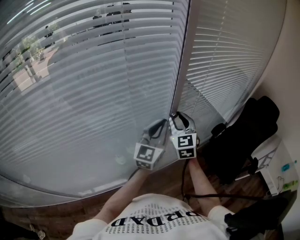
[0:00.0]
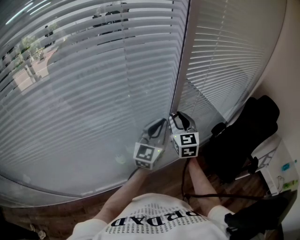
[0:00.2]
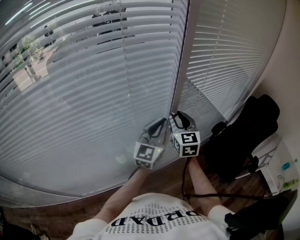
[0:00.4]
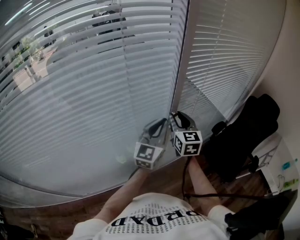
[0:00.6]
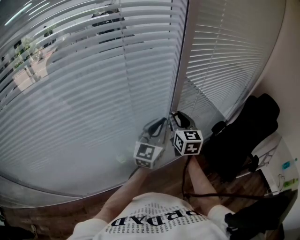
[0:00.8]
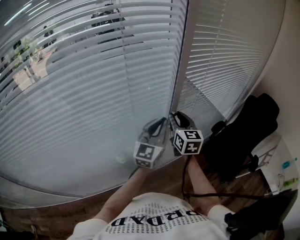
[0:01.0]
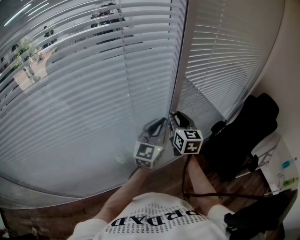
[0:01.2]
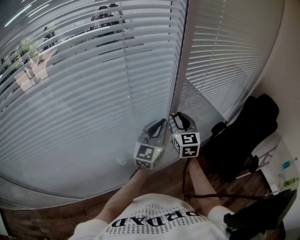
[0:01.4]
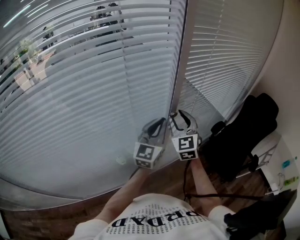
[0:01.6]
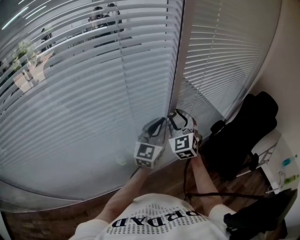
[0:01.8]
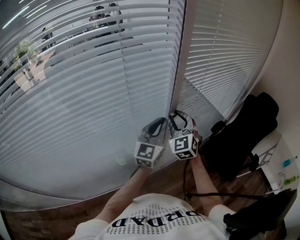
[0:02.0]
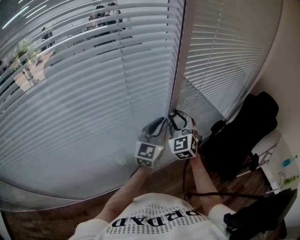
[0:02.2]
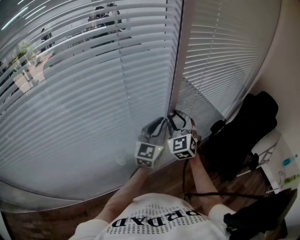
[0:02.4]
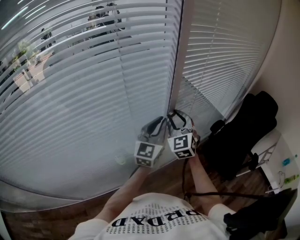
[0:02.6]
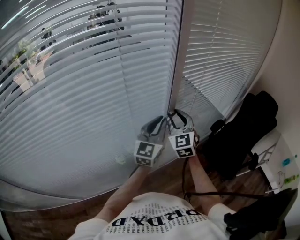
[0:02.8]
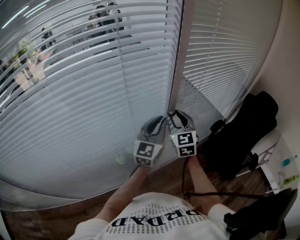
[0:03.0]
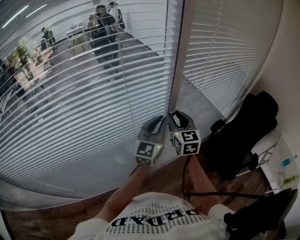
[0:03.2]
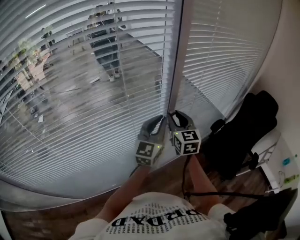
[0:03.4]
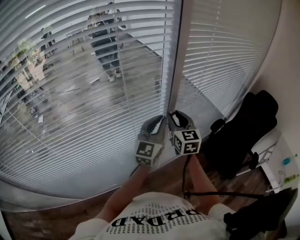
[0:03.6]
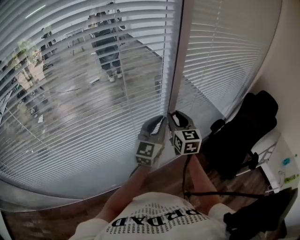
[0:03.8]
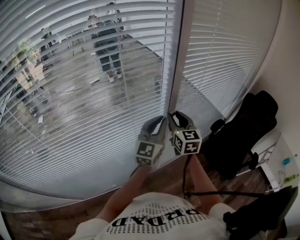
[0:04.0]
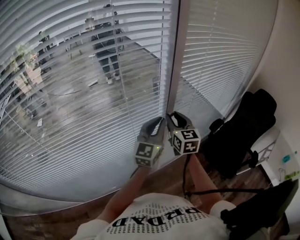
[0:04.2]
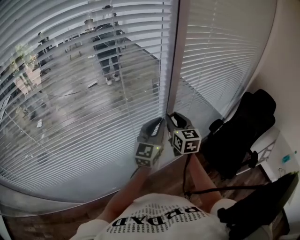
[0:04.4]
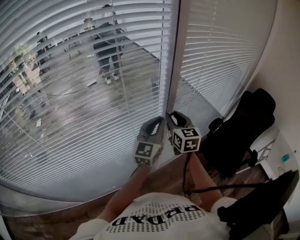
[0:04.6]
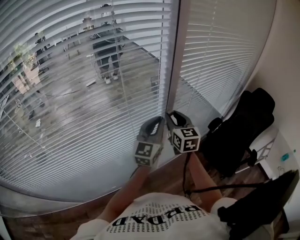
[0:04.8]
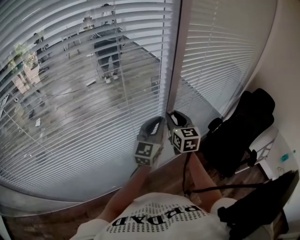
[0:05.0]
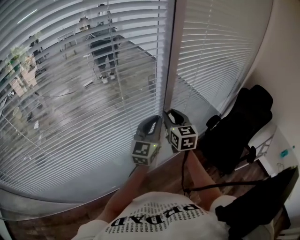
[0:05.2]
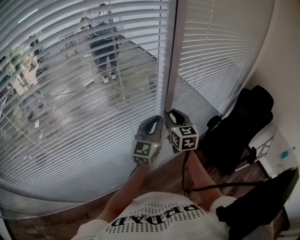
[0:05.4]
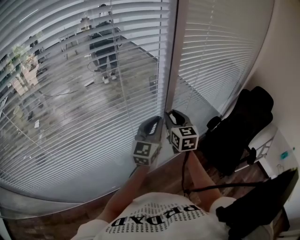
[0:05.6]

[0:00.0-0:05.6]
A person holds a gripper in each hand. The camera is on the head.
0:02.8 to 0:04.2: The right gripper rotates approximately 30 degrees.
0:04.2 to 0:05.6: The two grippers keep their place.

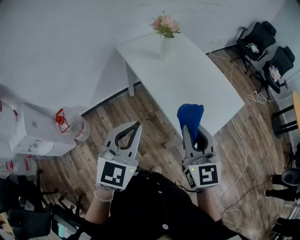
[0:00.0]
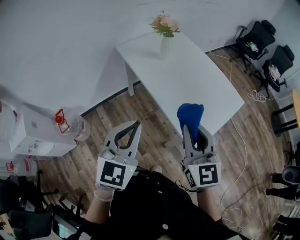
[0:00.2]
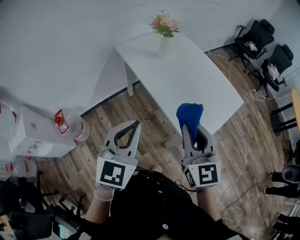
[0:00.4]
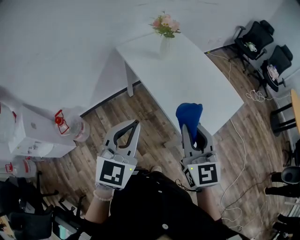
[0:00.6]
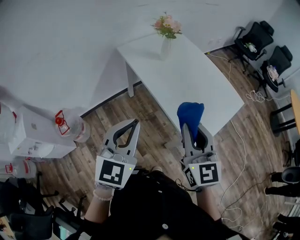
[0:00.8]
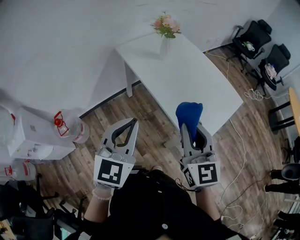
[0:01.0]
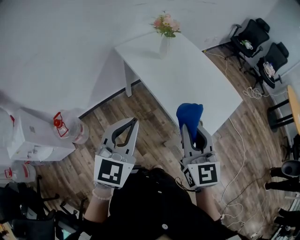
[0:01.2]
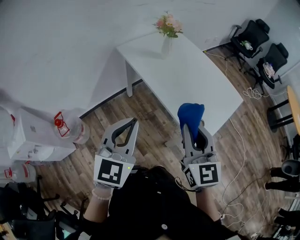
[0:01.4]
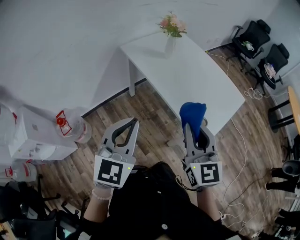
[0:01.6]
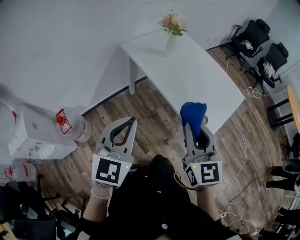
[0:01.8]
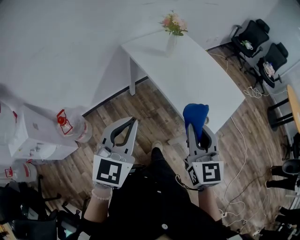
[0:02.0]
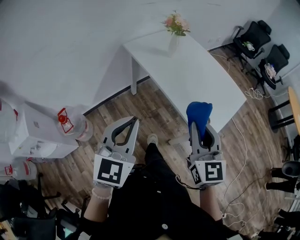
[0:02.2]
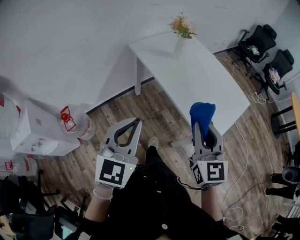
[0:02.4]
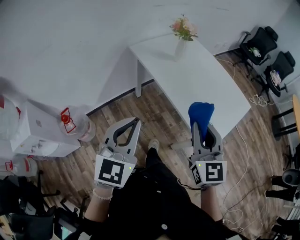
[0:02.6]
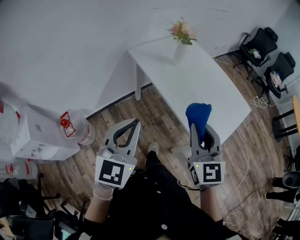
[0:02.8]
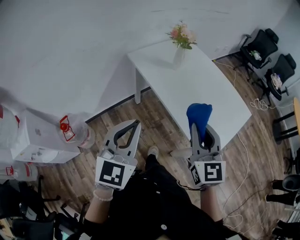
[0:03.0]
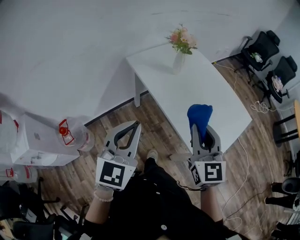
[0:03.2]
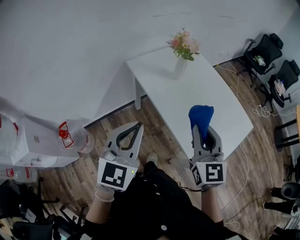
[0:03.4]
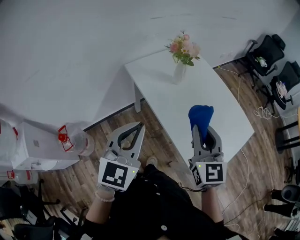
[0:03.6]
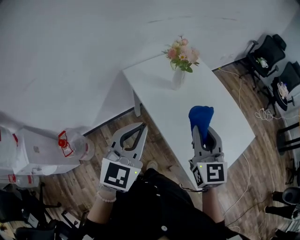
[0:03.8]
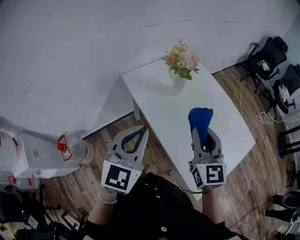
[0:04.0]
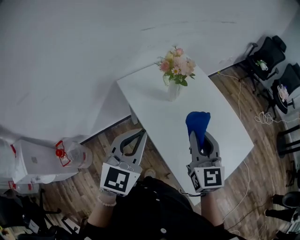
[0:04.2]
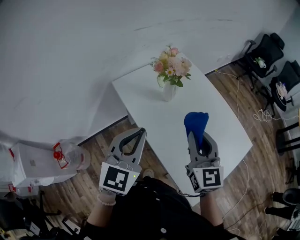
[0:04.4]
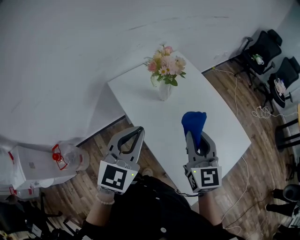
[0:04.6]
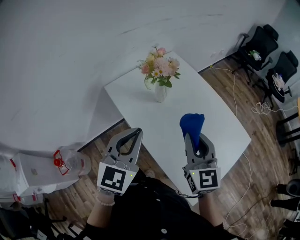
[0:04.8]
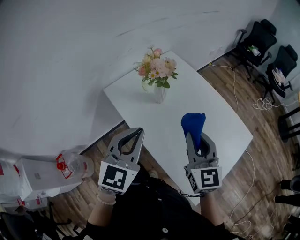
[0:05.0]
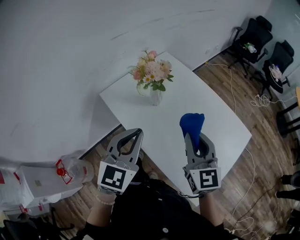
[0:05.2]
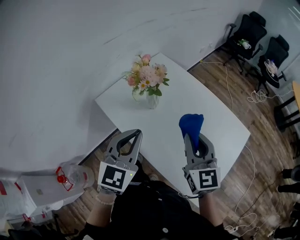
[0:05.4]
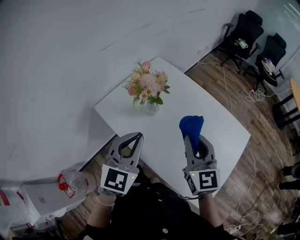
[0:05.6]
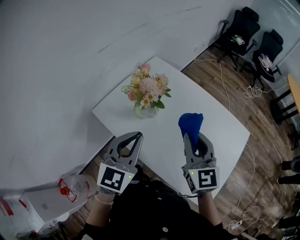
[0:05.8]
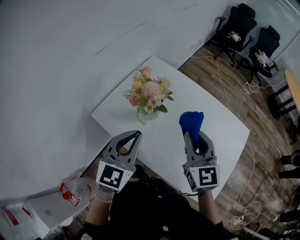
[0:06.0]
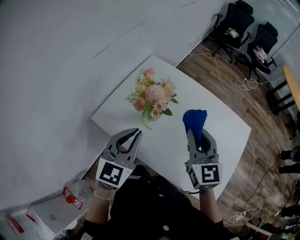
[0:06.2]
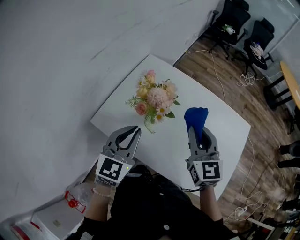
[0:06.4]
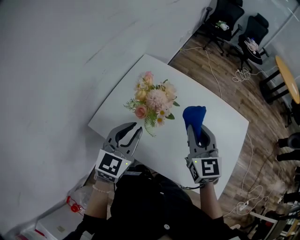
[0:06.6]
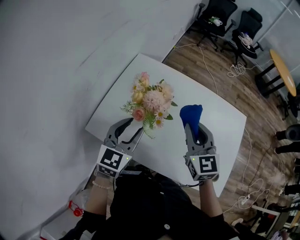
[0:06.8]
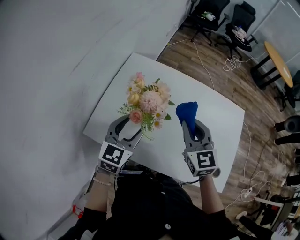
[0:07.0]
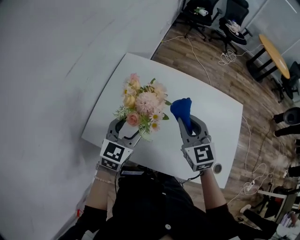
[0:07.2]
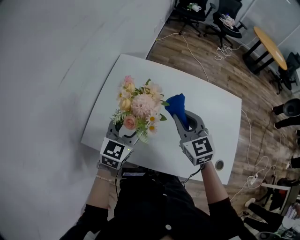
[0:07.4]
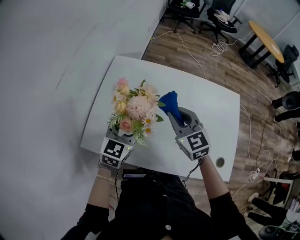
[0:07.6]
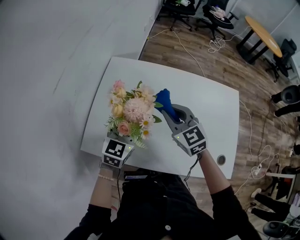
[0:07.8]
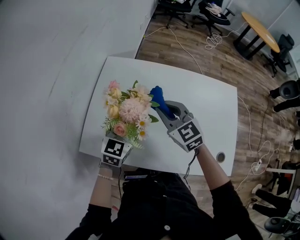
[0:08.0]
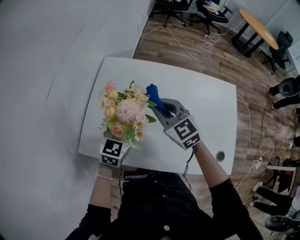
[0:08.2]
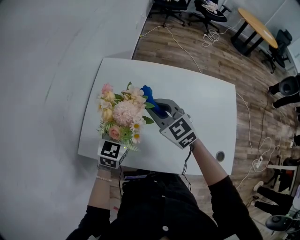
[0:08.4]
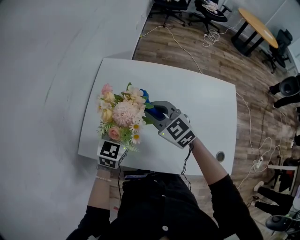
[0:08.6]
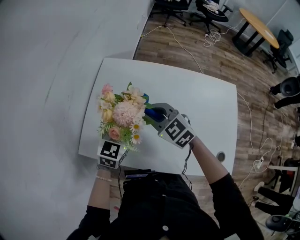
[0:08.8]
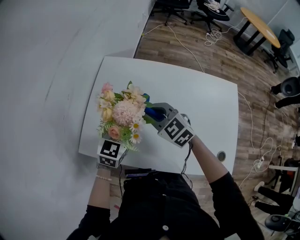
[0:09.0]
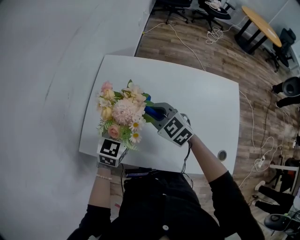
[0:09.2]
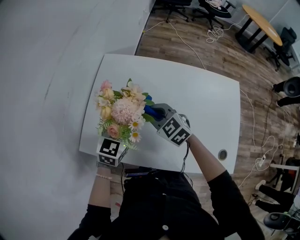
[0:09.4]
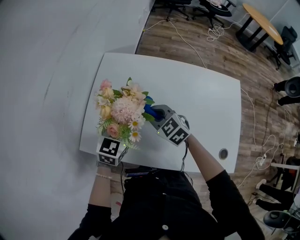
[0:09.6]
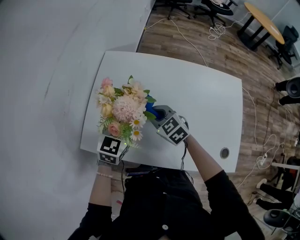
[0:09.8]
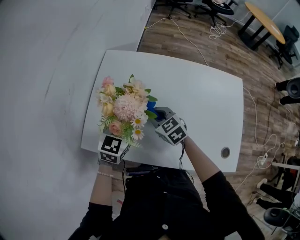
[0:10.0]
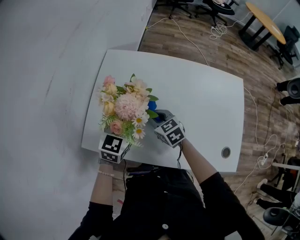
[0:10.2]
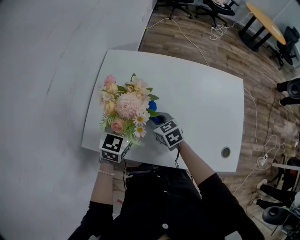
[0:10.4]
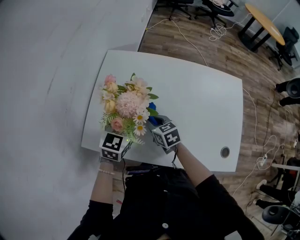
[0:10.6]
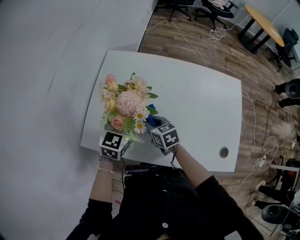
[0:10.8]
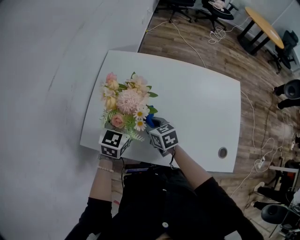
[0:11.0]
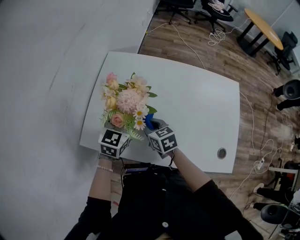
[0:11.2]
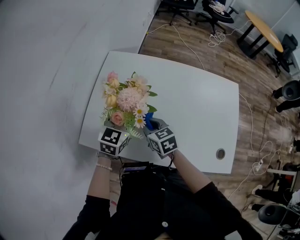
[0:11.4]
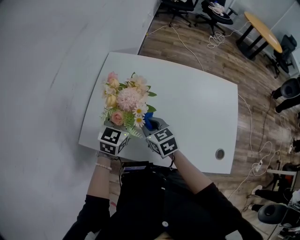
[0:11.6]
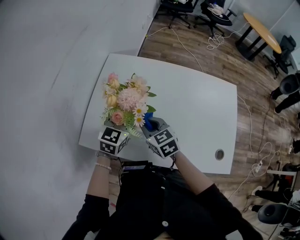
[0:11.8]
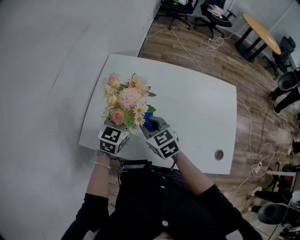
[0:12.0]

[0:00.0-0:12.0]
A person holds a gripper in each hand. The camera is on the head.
0:00.0 to 0:01.6: Both grippers move to the left, about 5 cm.
0:01.6 to 0:03.0: The two grippers go some 5 cm forward.
0:03.0 to 0:04.4: The two grippers go about 25 cm forward.
0:04.4 to 0:06.0: Both grippers travel together forward, some 15 cm. The left gripper changes its angle by roughly 20 degrees.
0:06.0 to 0:07.6: The grippers both shift forward and downward by approximately 15 cm. The left gripper swivels about 30 degrees, and opens.
0:07.6 to 0:09.0: The right gripper is displaced to the left and downward by some 10 cm, and changes its angle by some 20 degrees.
0:09.0 to 0:10.4: The right gripper moves downward, approximately 10 cm, and changes its angle by approximately 30 degrees.
0:10.4 to 0:12.0: The right gripper moves upward, roughly 10 cm.

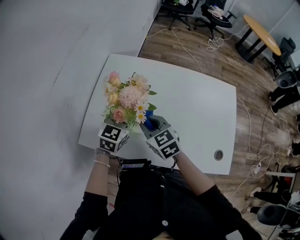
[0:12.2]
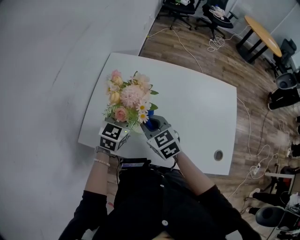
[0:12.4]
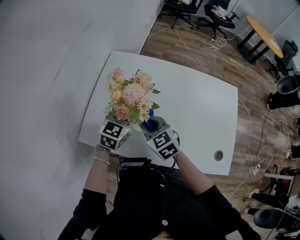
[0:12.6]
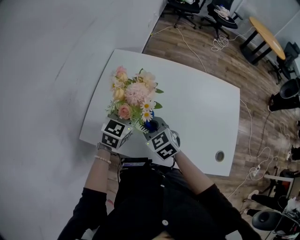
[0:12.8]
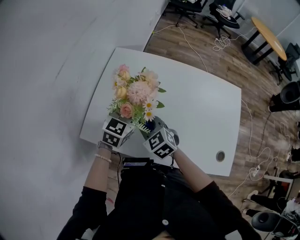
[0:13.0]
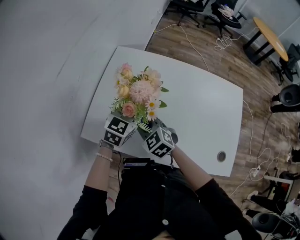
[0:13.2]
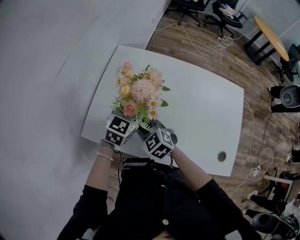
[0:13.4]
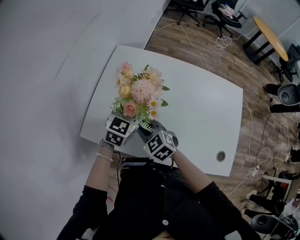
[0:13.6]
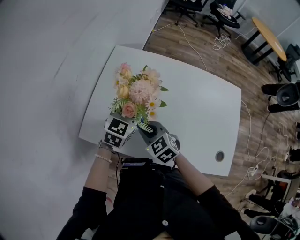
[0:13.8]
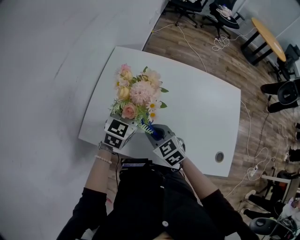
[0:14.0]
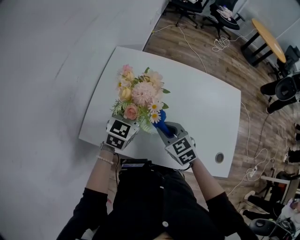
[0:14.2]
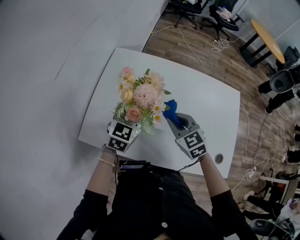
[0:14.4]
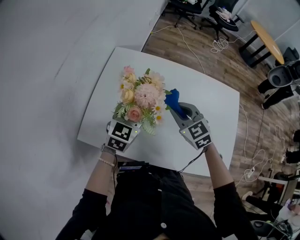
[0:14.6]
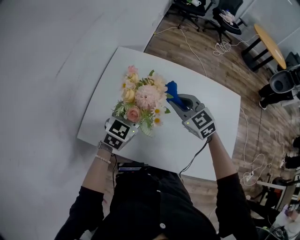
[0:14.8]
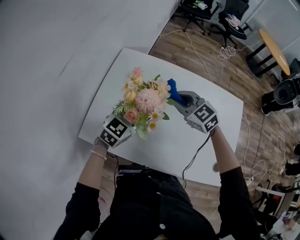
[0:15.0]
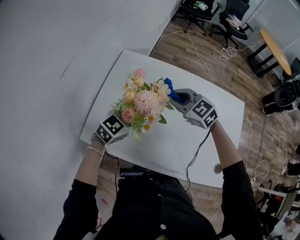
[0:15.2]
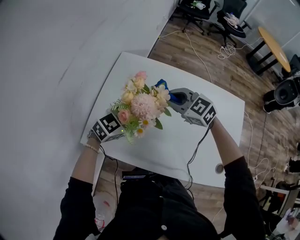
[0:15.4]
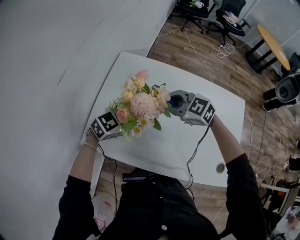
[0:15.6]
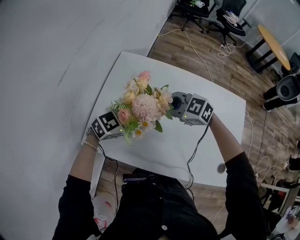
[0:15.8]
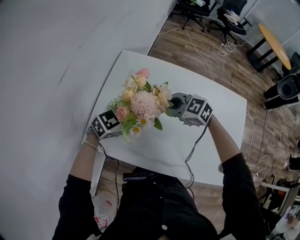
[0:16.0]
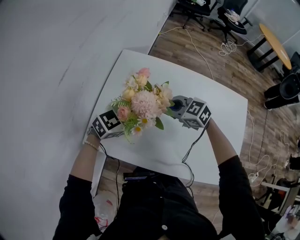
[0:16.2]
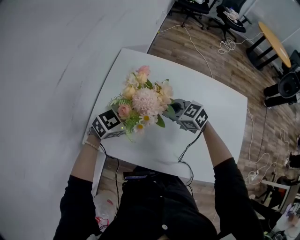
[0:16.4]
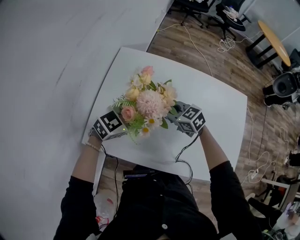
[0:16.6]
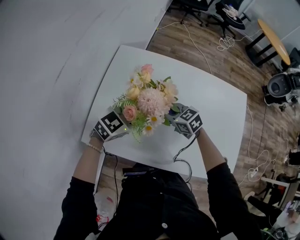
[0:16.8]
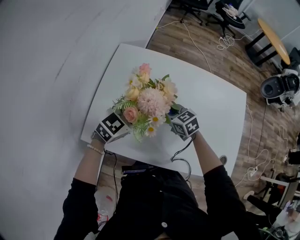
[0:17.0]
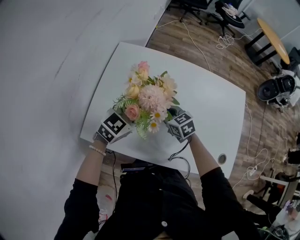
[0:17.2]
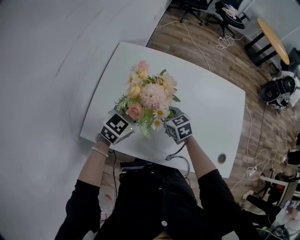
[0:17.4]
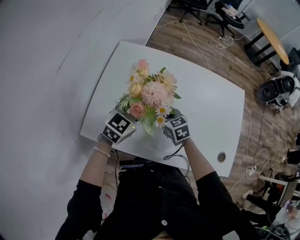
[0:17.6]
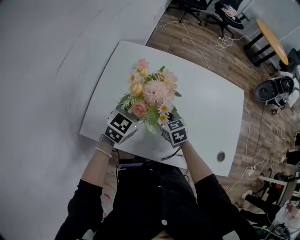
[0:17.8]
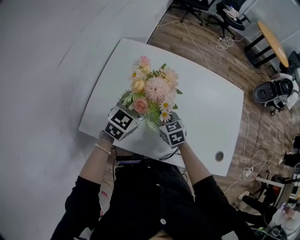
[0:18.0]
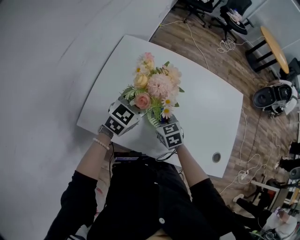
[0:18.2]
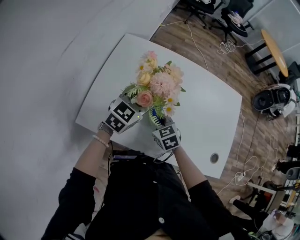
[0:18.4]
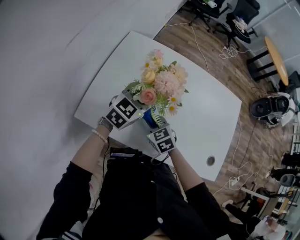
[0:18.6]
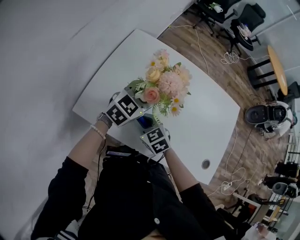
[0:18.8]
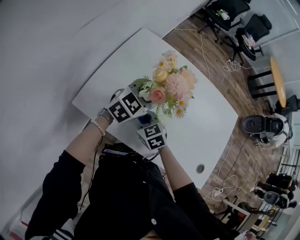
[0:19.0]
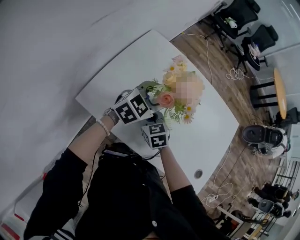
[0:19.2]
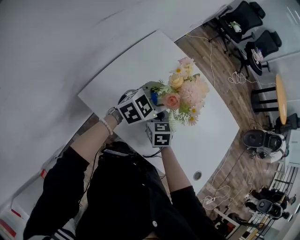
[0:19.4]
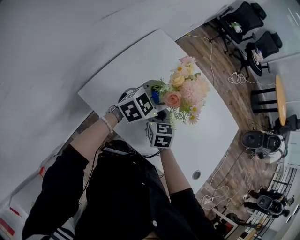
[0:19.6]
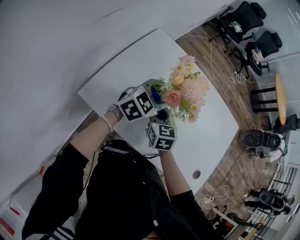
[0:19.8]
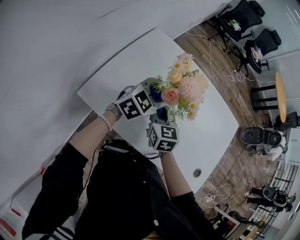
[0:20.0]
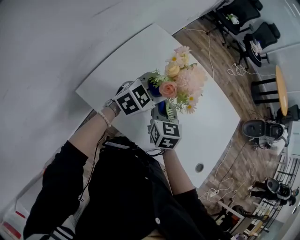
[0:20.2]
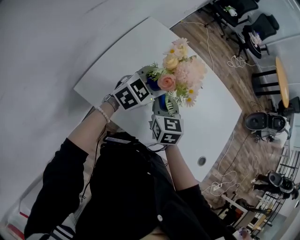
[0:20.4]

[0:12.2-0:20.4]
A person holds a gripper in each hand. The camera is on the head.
0:12.2 to 0:13.8: The right gripper shifts roughly 5 cm downward.
0:13.8 to 0:15.4: The right gripper heads forward, upward and to the right, covering some 20 cm. The left gripper rotates approximately 30 degrees.
0:15.4 to 0:17.2: The right gripper is displaced downward by approximately 10 cm, and rotates about 30 degrees.
0:17.2 to 0:18.8: The right gripper shifts approximately 15 cm backward and to the left.
0:18.8 to 0:20.4: The right gripper moves upward and forward, approximately 10 cm, and changes its angle by approximately 30 degrees.
